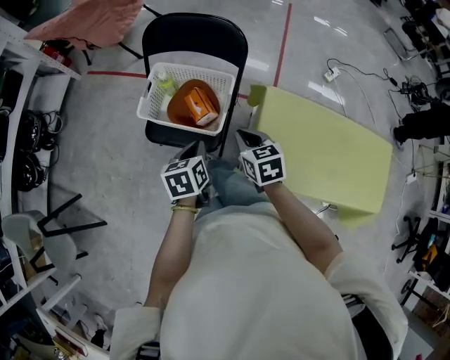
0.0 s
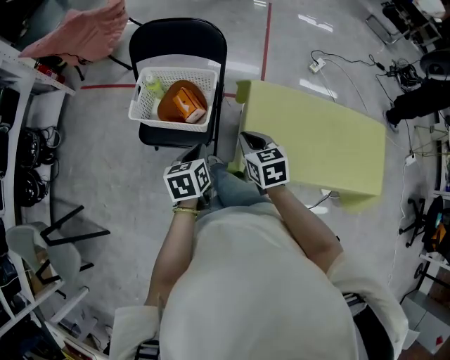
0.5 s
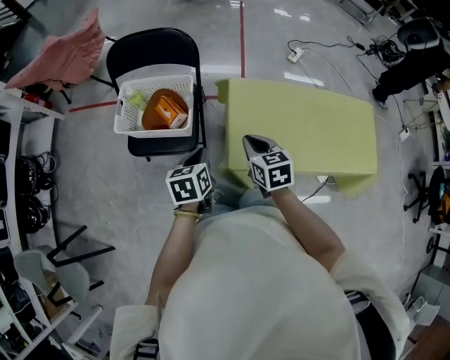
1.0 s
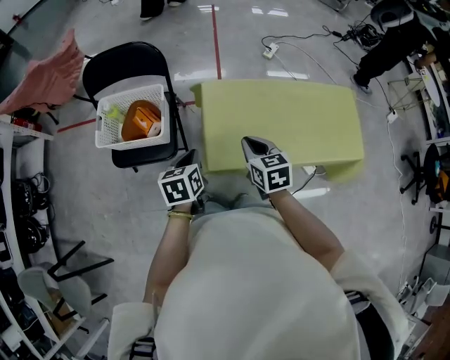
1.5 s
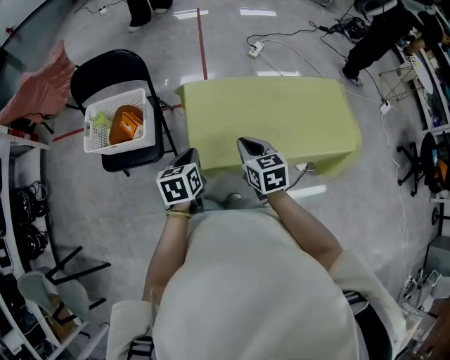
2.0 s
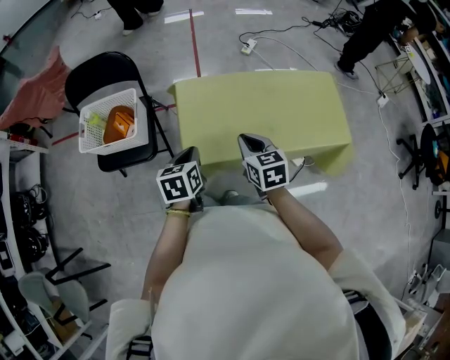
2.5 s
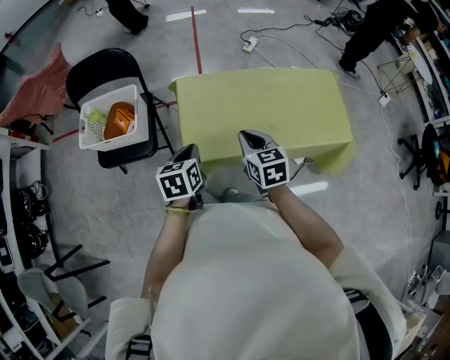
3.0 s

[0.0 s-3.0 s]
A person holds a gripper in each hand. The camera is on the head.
0.0 to 1.5 s: Both grippers move to the right and backward, roughly 25 cm. The right gripper turns by about 20 degrees. The left gripper rotates approximately 20 degrees.
1.5 to 3.0 s: The right gripper is displaced to the right and backward by roughly 15 cm, while the left gripper shifts about 10 cm to the right.

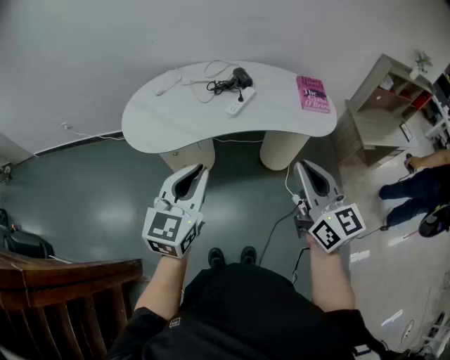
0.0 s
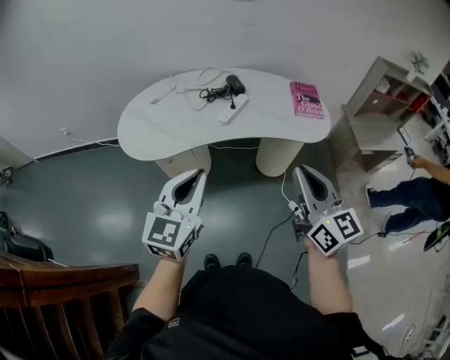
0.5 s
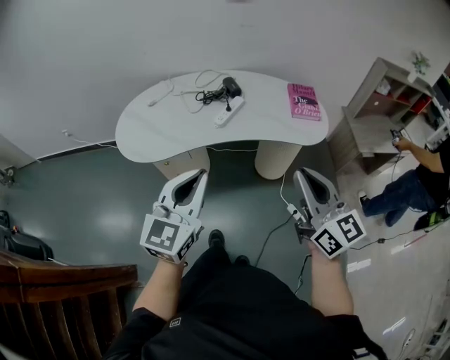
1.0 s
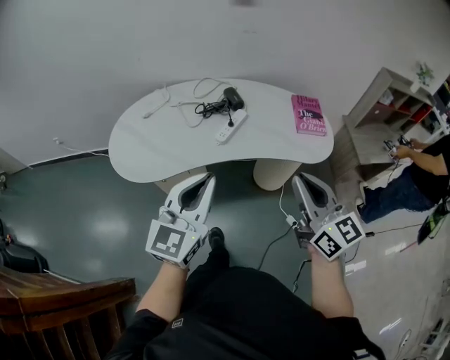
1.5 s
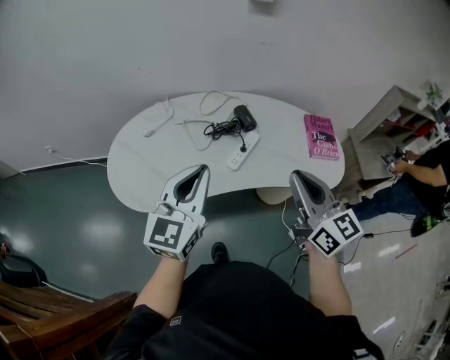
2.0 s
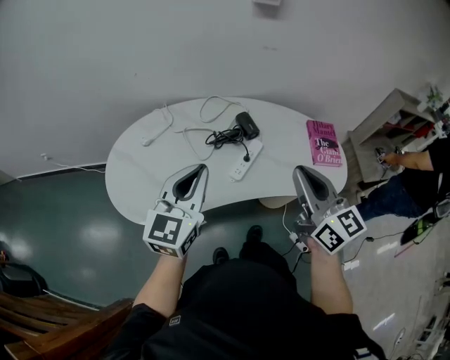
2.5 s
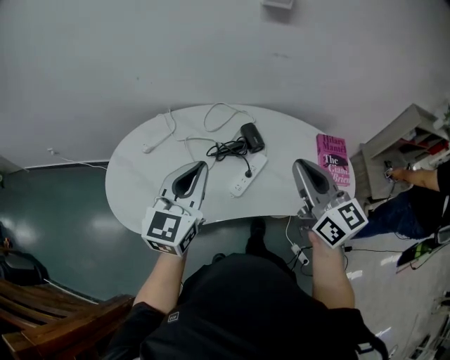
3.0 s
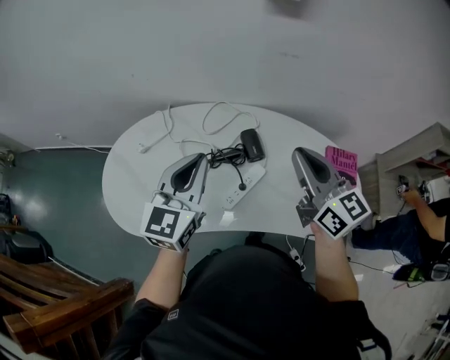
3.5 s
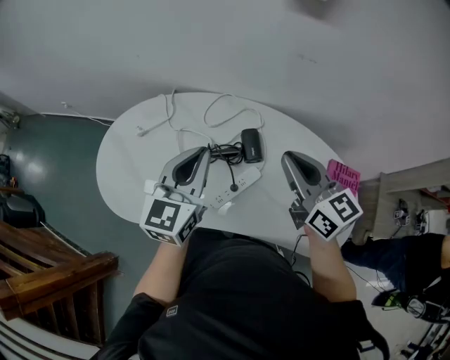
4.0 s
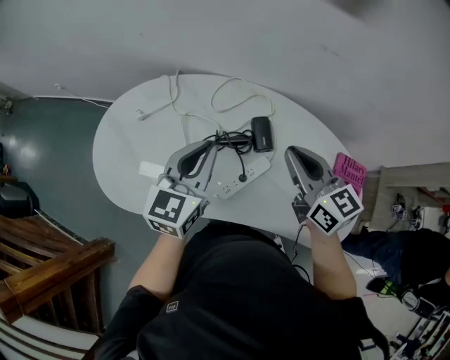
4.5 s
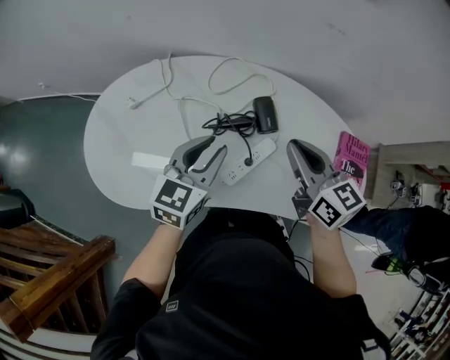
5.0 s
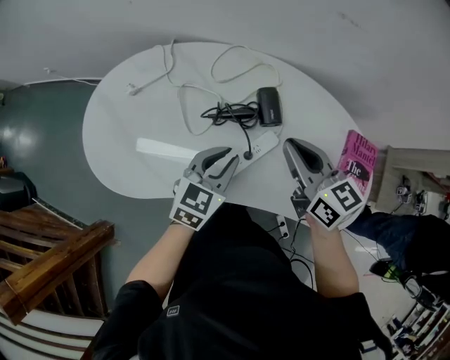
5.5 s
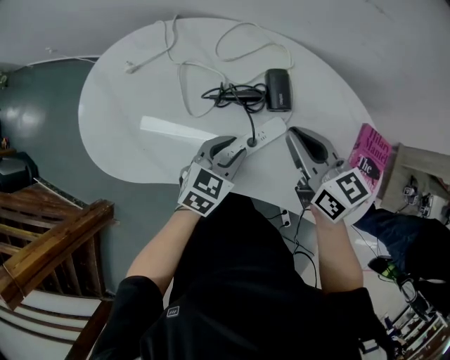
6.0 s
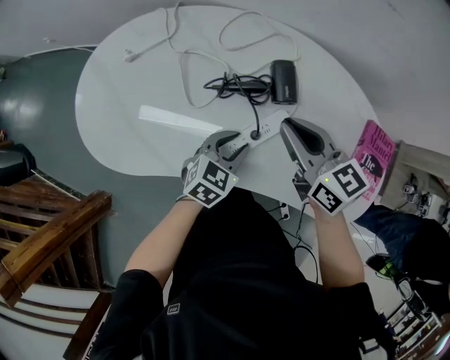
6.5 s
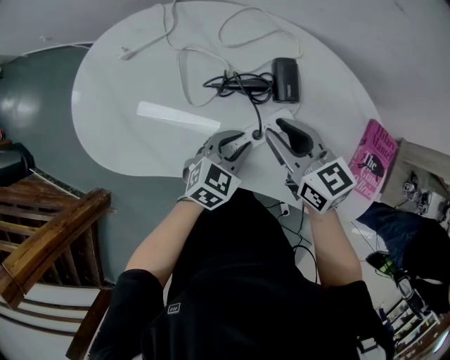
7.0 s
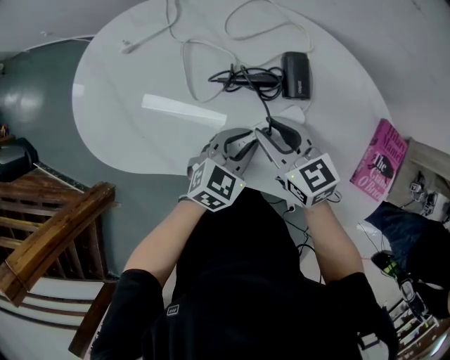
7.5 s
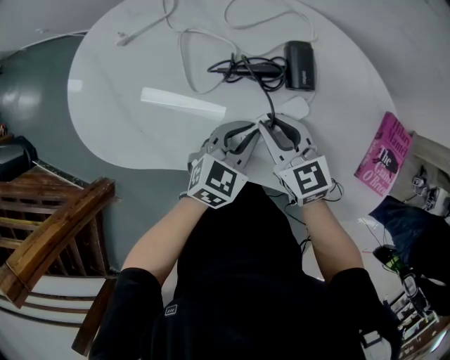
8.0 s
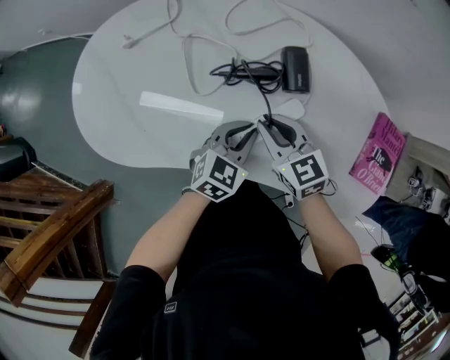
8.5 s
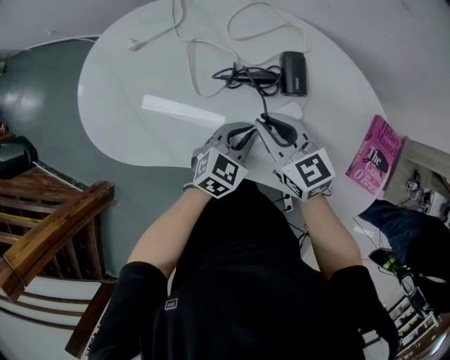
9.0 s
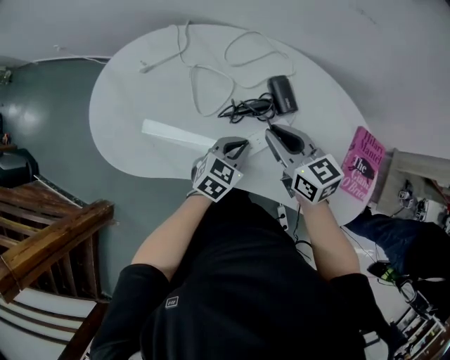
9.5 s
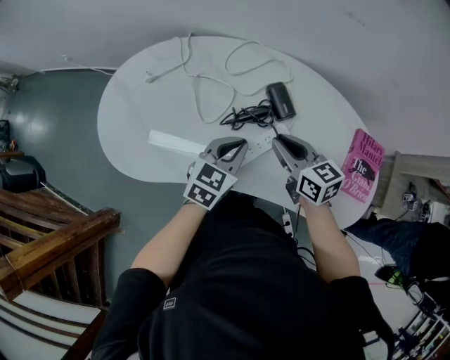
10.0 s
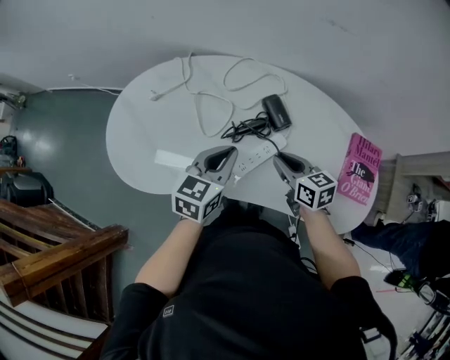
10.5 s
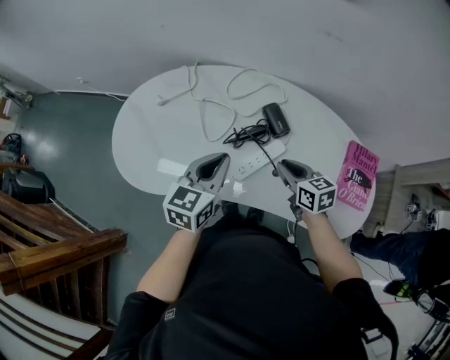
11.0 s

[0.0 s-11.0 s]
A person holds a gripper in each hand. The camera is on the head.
0.0 to 2.0 s: Both grippers travel together forward, roughly 25 cm.
2.0 to 3.5 s: The two grippers go roughly 25 cm forward.
3.5 to 5.5 s: The left gripper shifts roughly 20 cm downward, and turns by roughly 30 degrees, while the right gripper moves downward, roughly 15 cm, and changes its angle by some 20 degrees.
5.5 to 7.5 s: The left gripper goes approximately 10 cm downward; the right gripper moves downward and to the left, approximately 15 cm, and opens.
7.5 to 9.0 s: There are only small adjustments of the grippers.
9.0 to 11.0 s: The left gripper travels upward by roughly 20 cm, and rotates approximately 20 degrees. Meanwhile the right gripper moves to the right, some 10 cm, and swivels some 20 degrees.

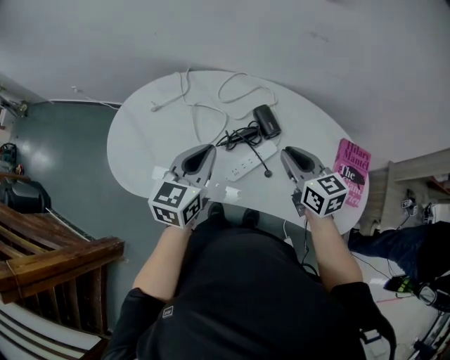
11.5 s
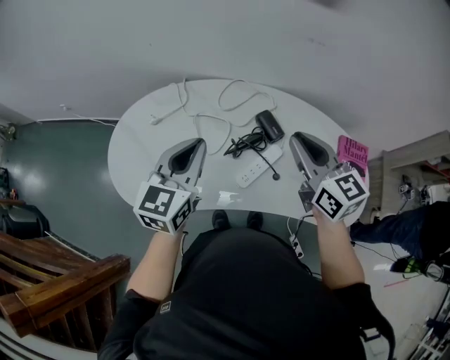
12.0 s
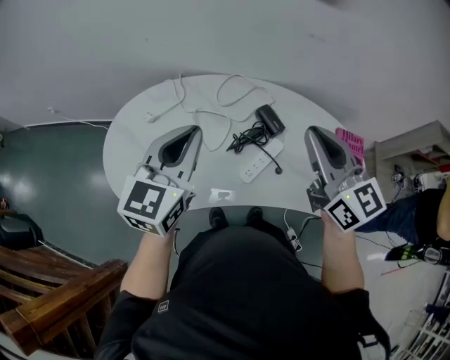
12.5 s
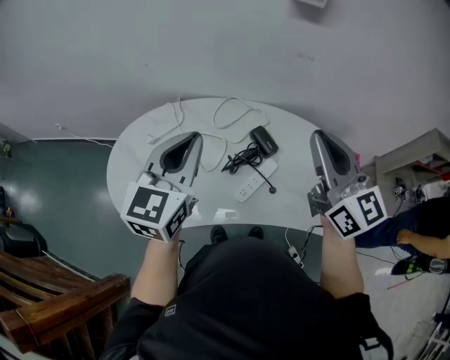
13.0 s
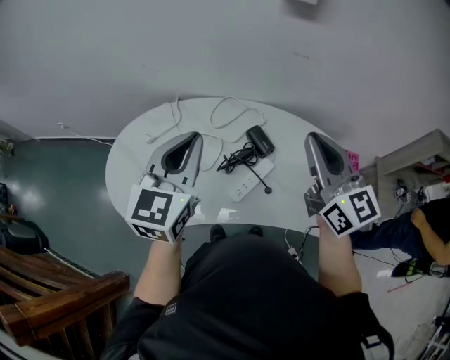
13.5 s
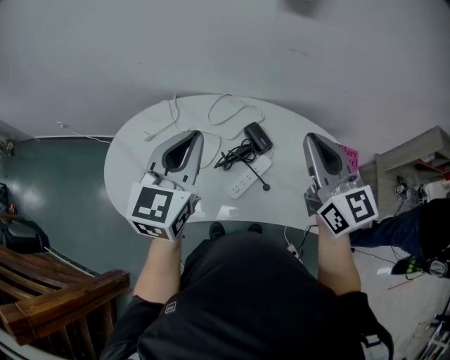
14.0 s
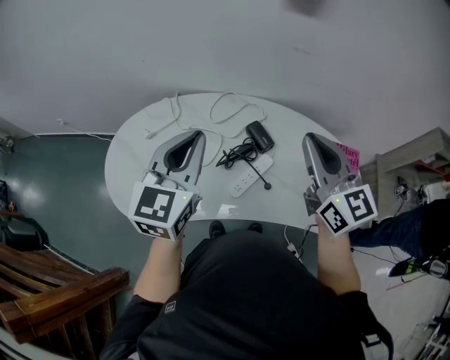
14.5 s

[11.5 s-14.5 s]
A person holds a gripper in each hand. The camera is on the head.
11.5 to 13.0 s: The right gripper is displaced upward by roughly 25 cm, and changes its angle by roughly 30 degrees; the left gripper travels upward by roughly 15 cm.
13.0 to 14.5 s: The grippers make only small movements.

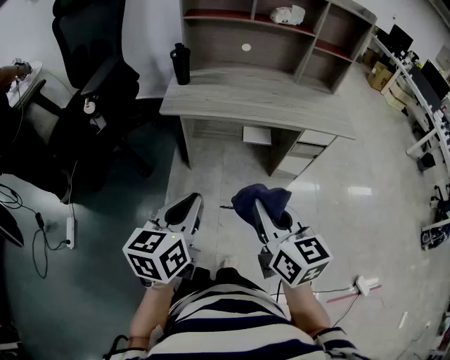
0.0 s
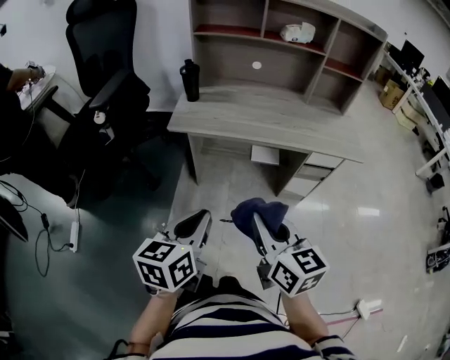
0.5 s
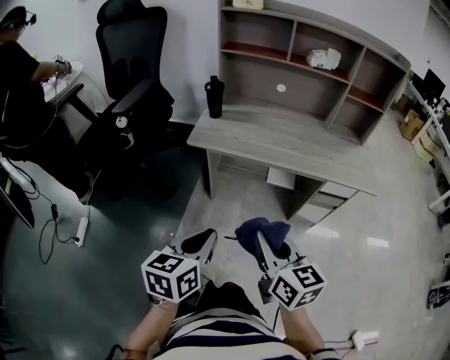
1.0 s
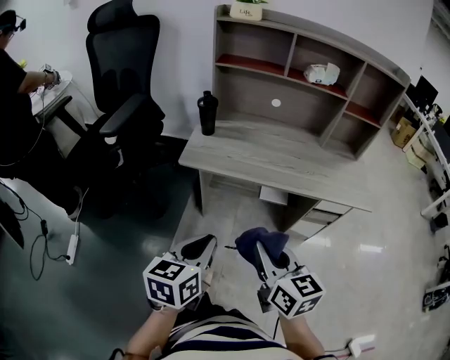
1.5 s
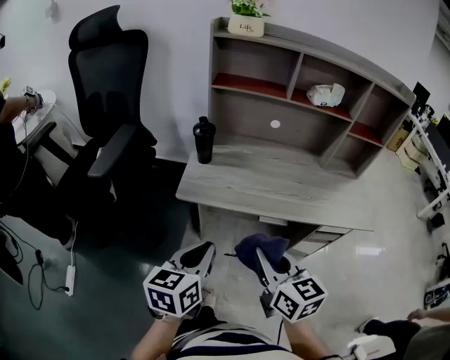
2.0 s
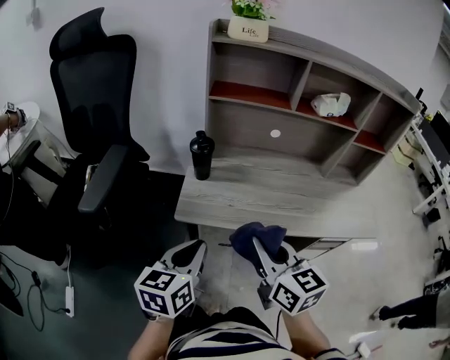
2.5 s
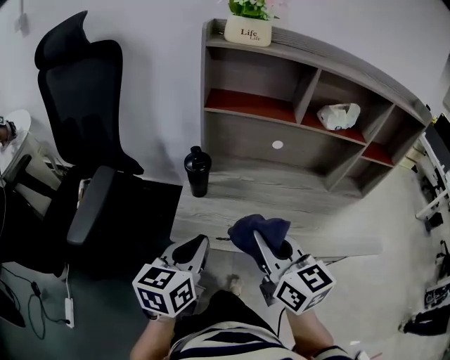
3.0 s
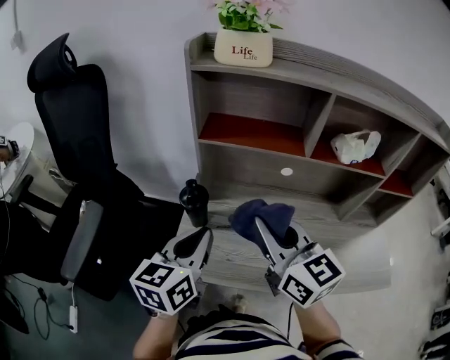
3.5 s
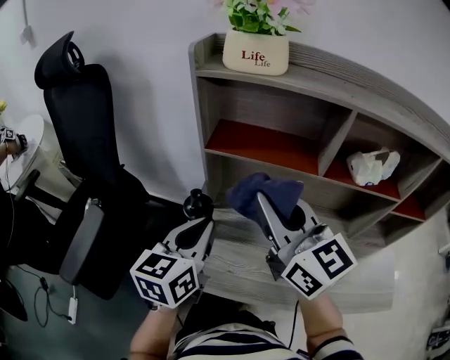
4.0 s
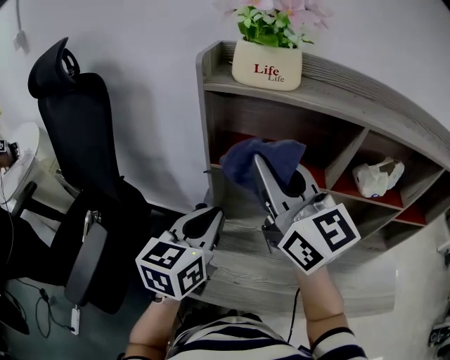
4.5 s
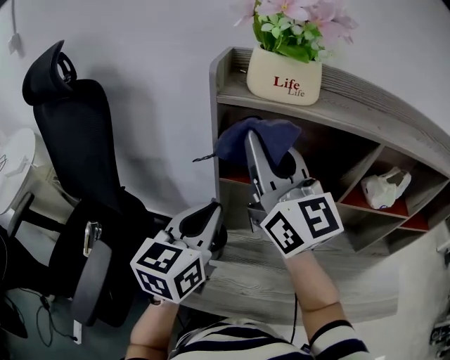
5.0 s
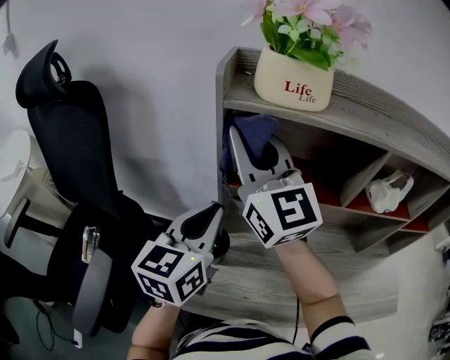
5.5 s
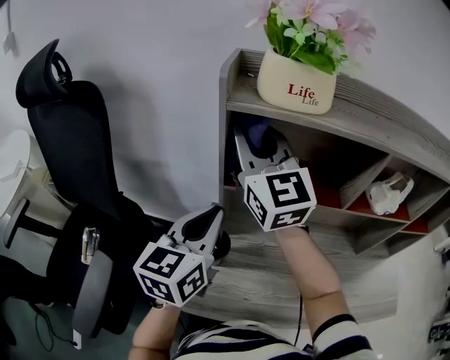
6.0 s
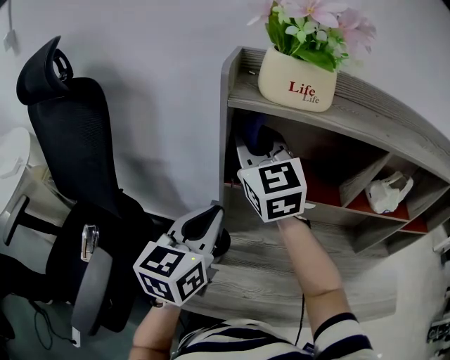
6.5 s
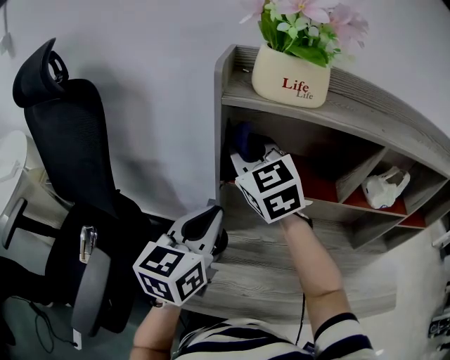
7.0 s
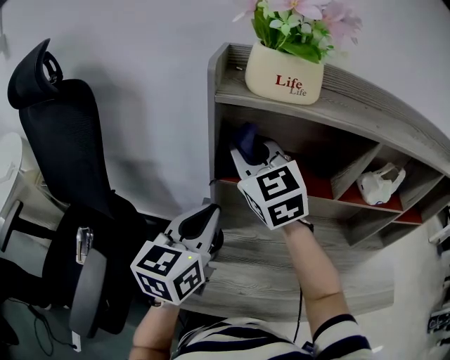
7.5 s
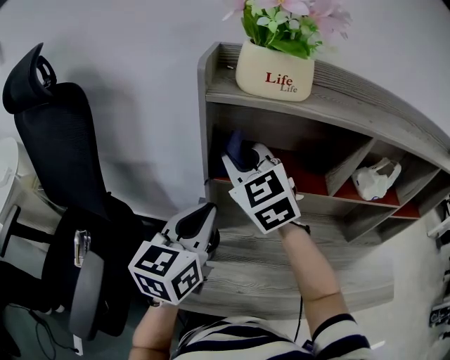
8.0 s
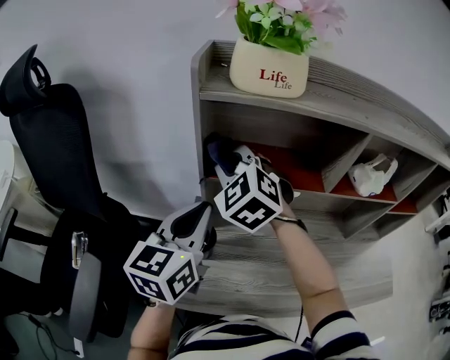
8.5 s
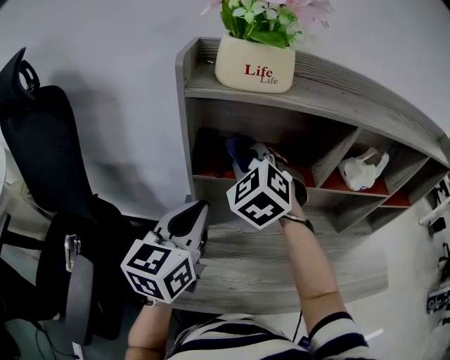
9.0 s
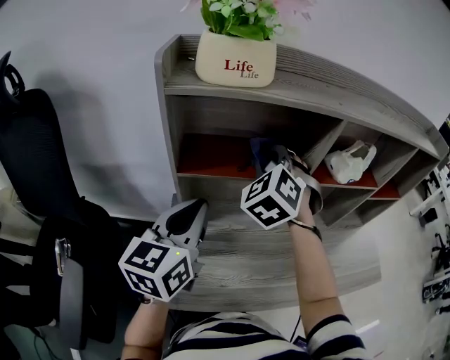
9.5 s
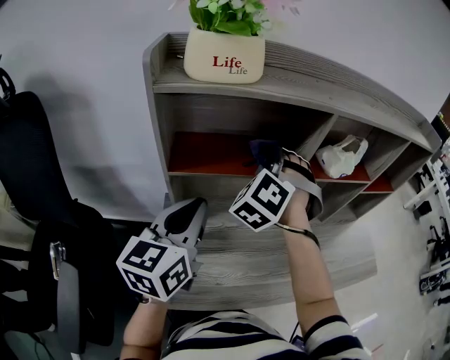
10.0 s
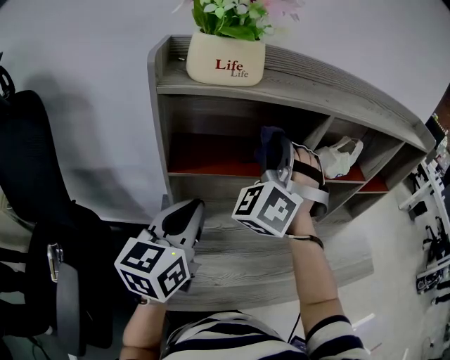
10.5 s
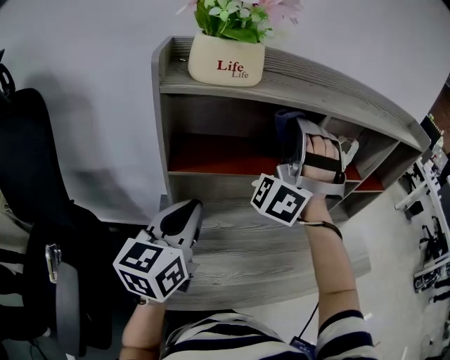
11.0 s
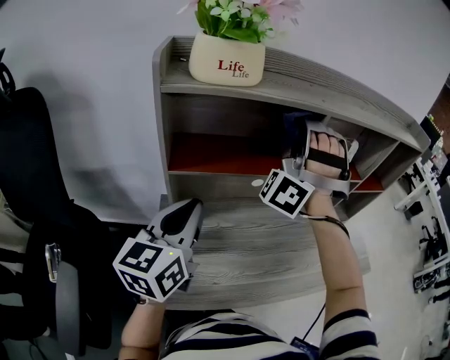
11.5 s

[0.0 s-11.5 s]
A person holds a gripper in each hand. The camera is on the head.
0.0 to 2.0 s: Both grippers travel together forward, roughly 20 cm.
2.0 to 4.0 s: The left gripper is displaced forward by roughly 35 cm. Meanwhile the right gripper is displaced forward and upward by some 40 cm, and changes its angle by some 30 degrees.
4.0 to 6.0 s: The left gripper moves forward, some 10 cm. Meanwhile the right gripper heads forward and to the left, covering some 25 cm, and rotates about 20 degrees.
6.0 to 7.5 s: The right gripper travels downward by roughly 5 cm, and changes its angle by roughly 20 degrees.
7.5 to 9.5 s: The right gripper shifts about 15 cm to the right and downward, and swivels roughly 50 degrees.
9.5 to 11.5 s: The right gripper heads upward and to the right, covering about 15 cm, and tips its fingers upward by some 40 degrees.
